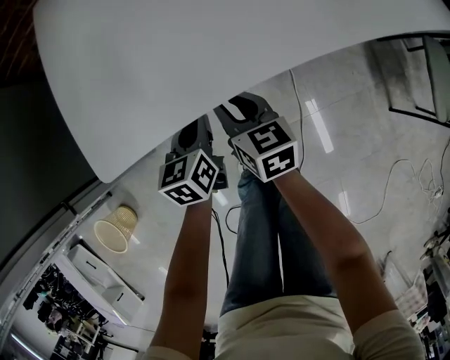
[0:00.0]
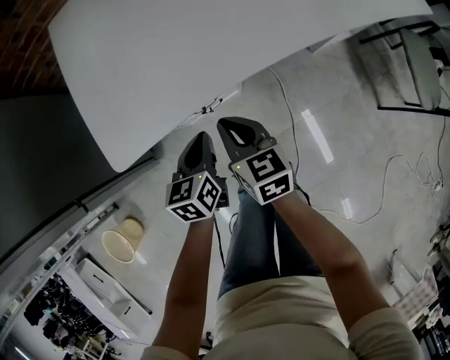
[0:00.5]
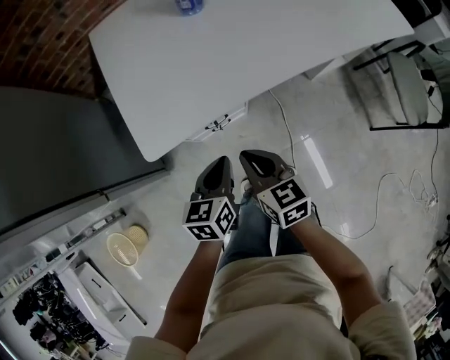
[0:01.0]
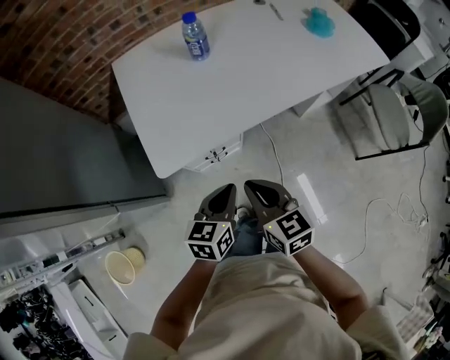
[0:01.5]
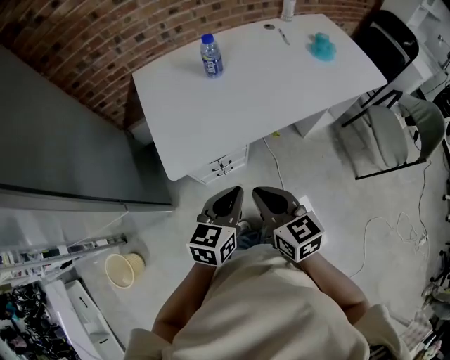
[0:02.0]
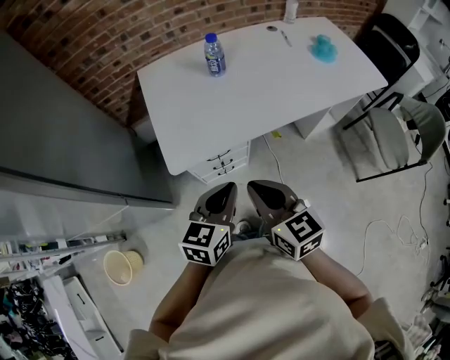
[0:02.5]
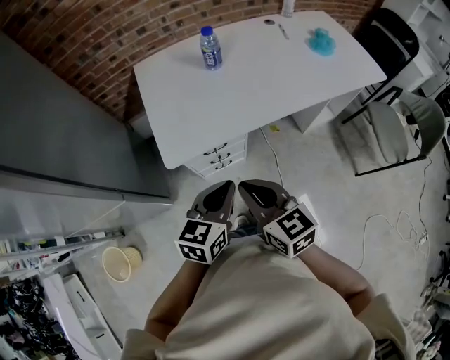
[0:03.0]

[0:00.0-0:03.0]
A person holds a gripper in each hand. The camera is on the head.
0:00.0 to 0:01.5: The grippers both shift upward and backward by about 30 cm. The left gripper rotates about 20 degrees, while the right gripper closes up.
0:01.5 to 0:03.0: The two grippers go about 10 cm upward.

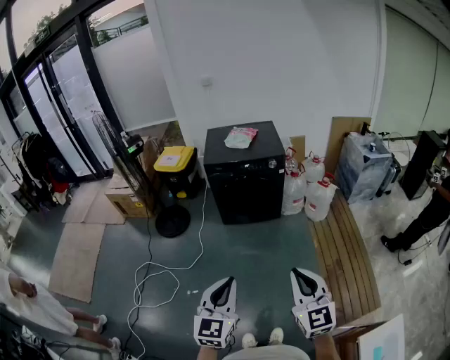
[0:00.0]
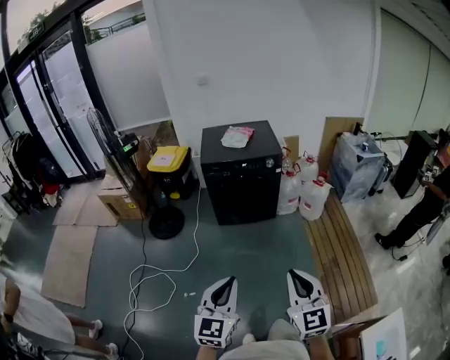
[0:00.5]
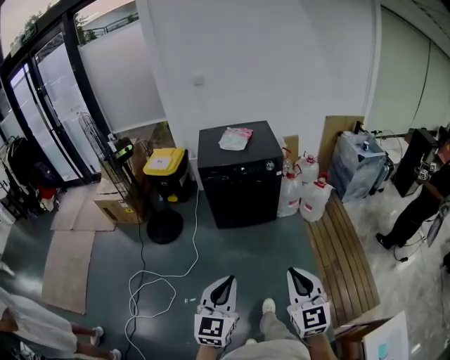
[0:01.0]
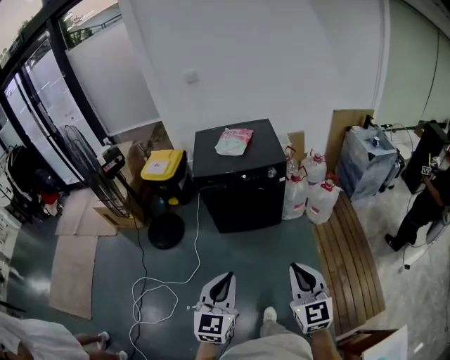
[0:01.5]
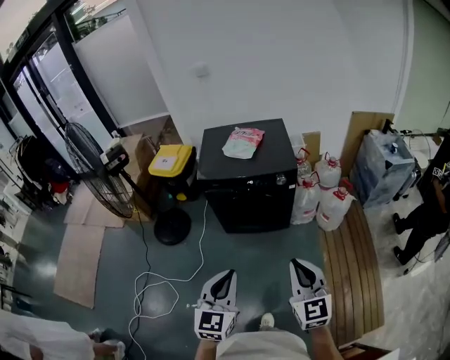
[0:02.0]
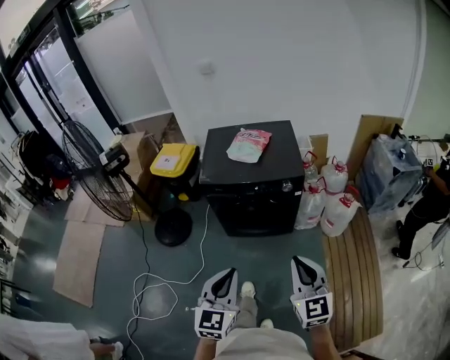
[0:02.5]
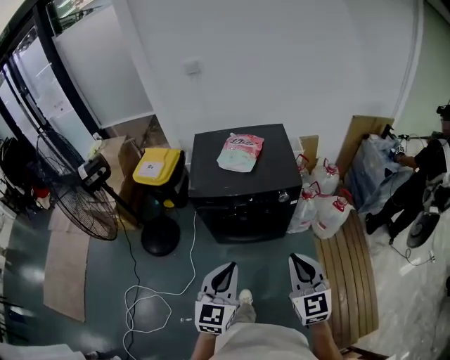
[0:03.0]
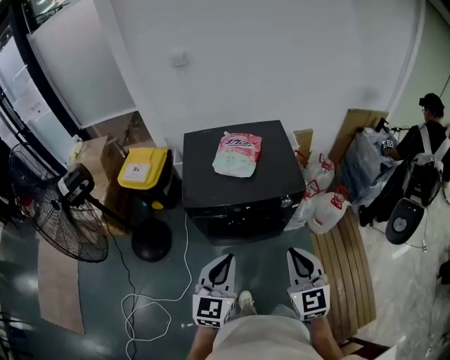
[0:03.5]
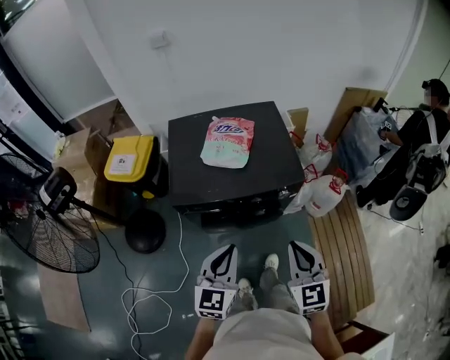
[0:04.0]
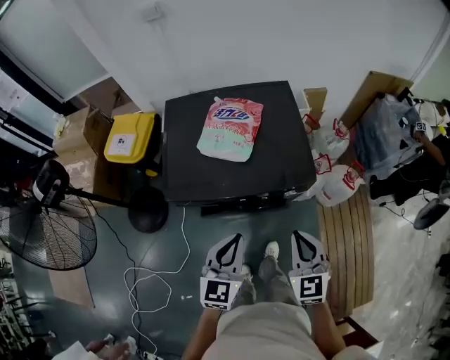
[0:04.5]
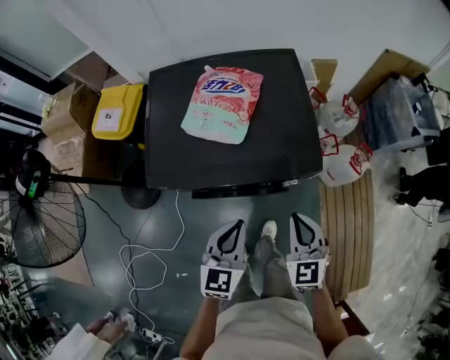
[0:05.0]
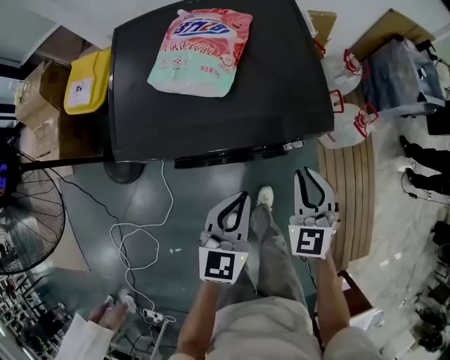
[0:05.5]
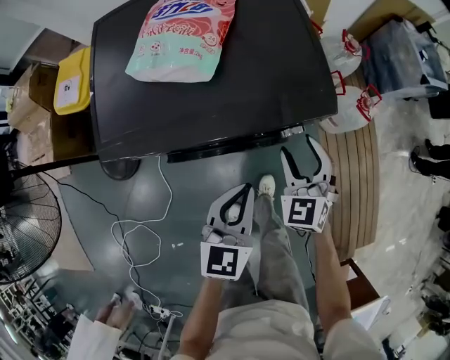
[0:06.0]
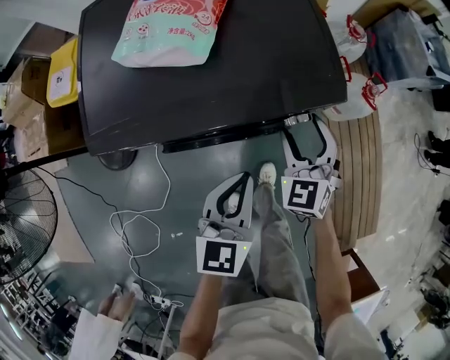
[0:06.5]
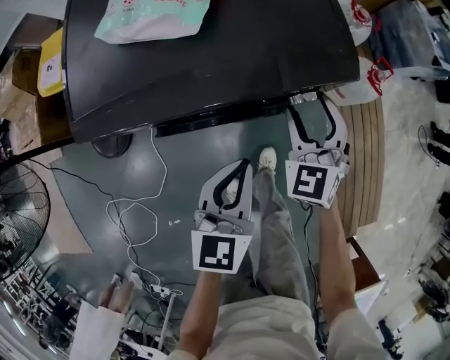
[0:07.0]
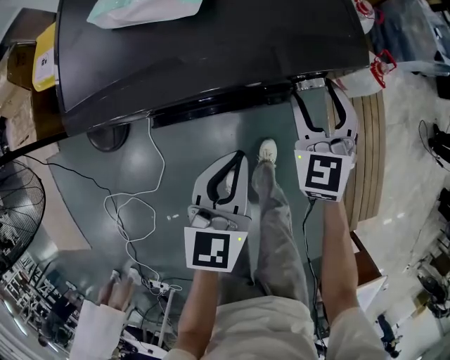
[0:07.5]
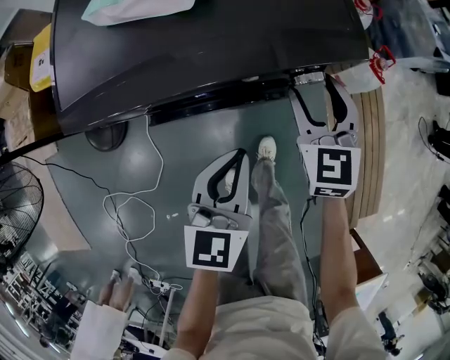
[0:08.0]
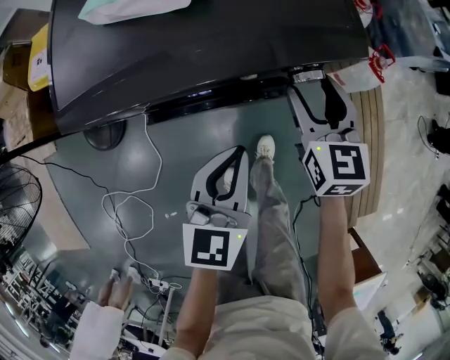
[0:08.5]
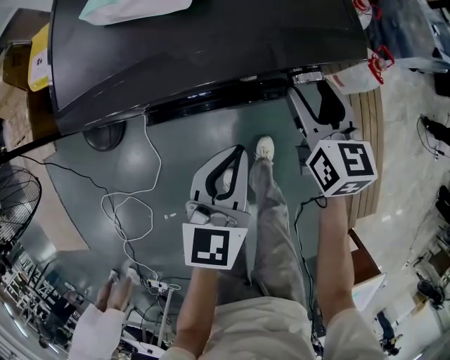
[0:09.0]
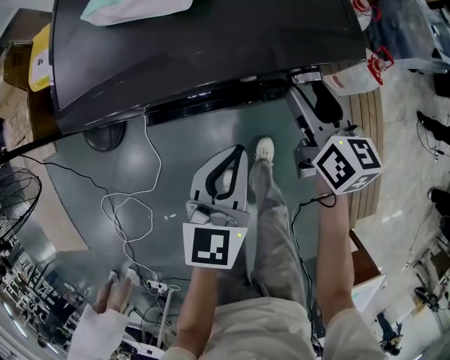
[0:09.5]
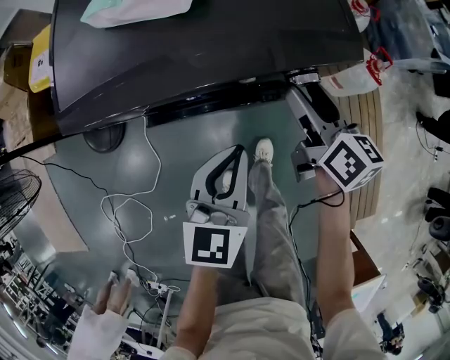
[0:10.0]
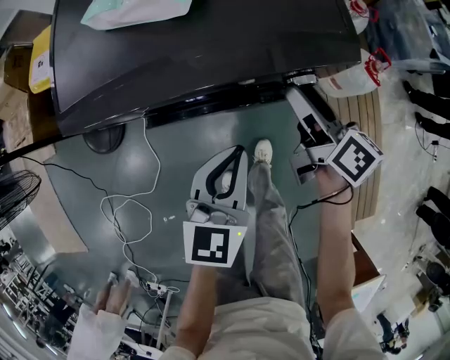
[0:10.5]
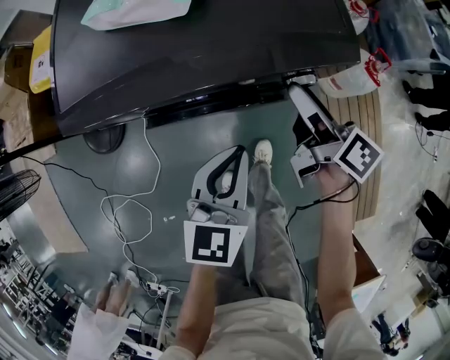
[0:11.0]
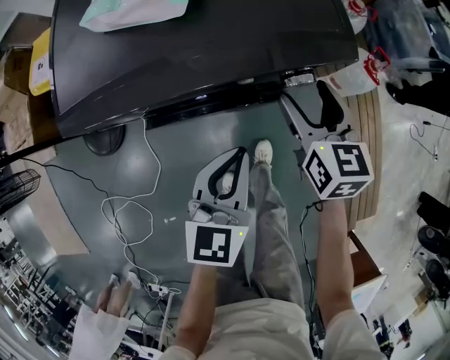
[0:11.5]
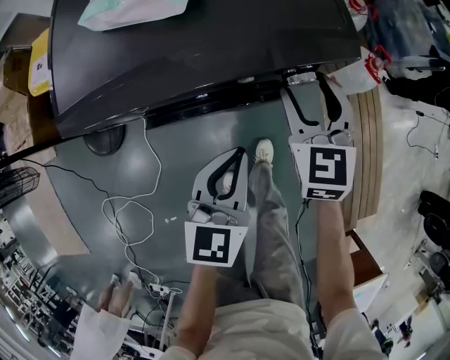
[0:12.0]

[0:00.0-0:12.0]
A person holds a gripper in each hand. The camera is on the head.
0:00.0 to 0:02.0: Both grippers travel together forward, approximately 30 cm.
0:02.0 to 0:04.0: Both grippers travel together forward, some 30 cm.
0:04.0 to 0:06.0: The right gripper moves downward and forward, some 35 cm, and opens. The left gripper is displaced downward, forward and to the right by about 25 cm.
0:06.0 to 0:08.0: The grippers make only small movements.
0:08.0 to 0:10.0: The right gripper rotates around the line of its fingers by roughly 50 degrees, clockwise from behind.
0:10.0 to 0:12.0: The right gripper rotates around the line of its fingers by approximately 50 degrees, counterclockwise from behind.

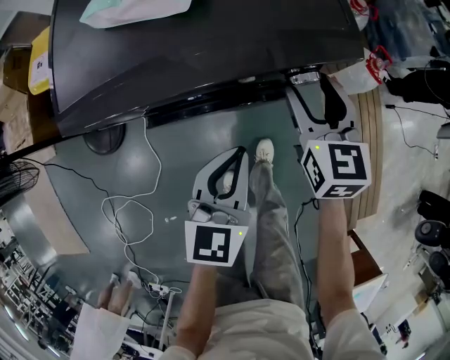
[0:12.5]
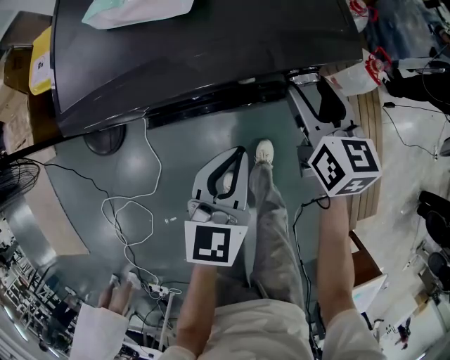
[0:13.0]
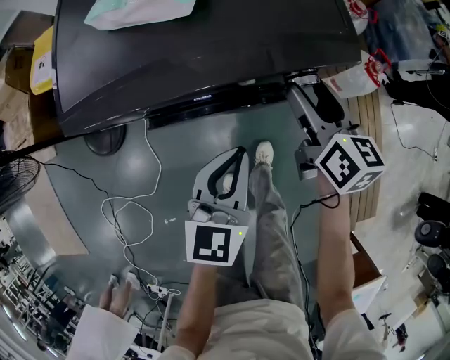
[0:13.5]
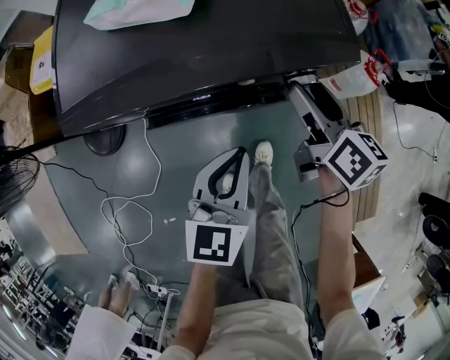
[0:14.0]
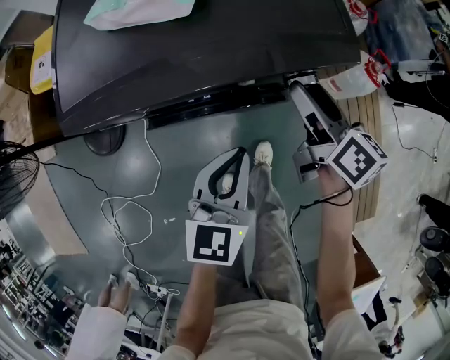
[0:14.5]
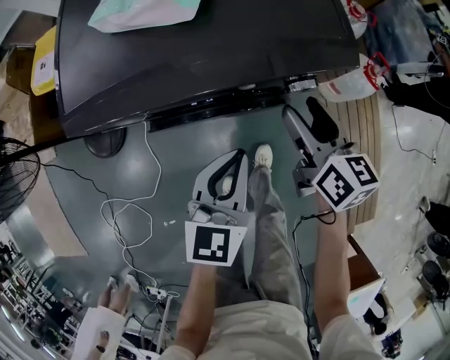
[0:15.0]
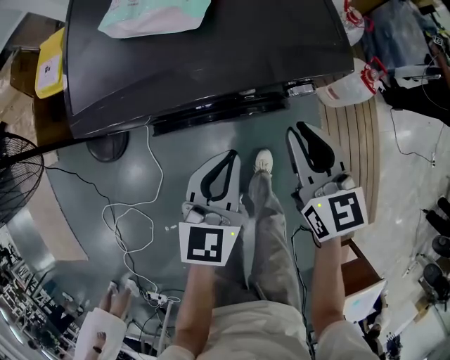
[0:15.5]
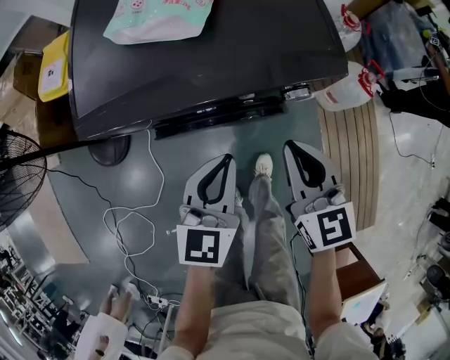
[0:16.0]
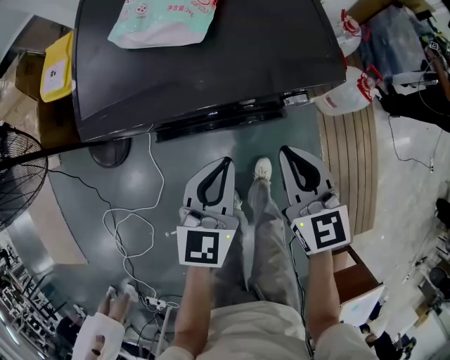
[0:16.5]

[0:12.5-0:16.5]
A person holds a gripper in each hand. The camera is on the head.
0:12.5 to 0:14.5: The right gripper turns by roughly 40 degrees.
0:14.5 to 0:16.5: The right gripper shifts approximately 10 cm backward, upward and to the left, rolls counterclockwise, seen from behind, by about 40 degrees, and closes.

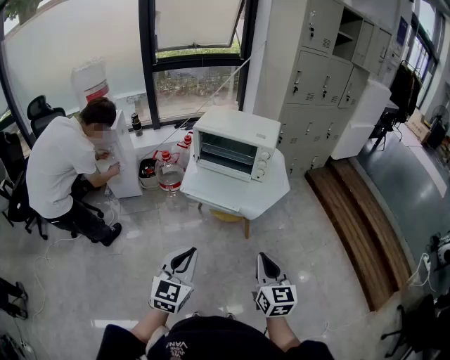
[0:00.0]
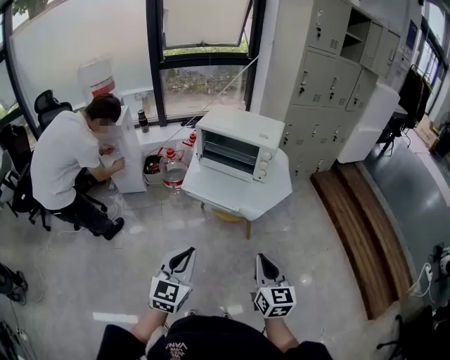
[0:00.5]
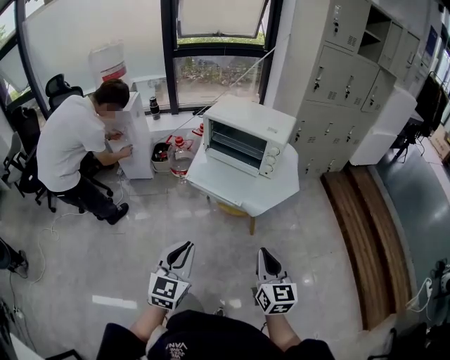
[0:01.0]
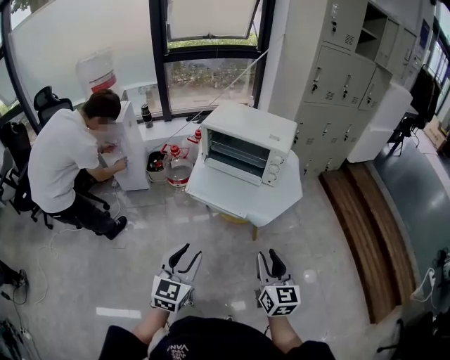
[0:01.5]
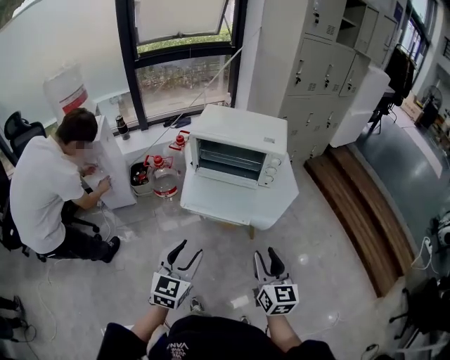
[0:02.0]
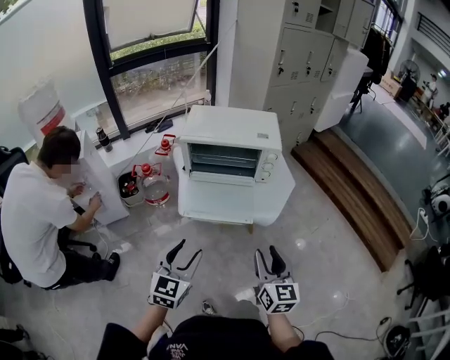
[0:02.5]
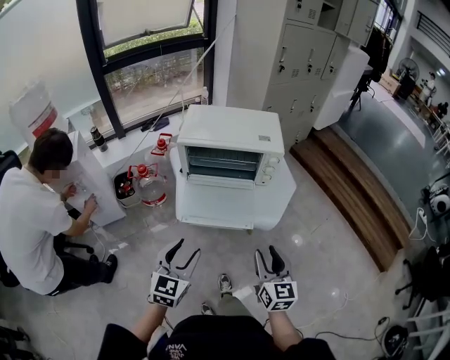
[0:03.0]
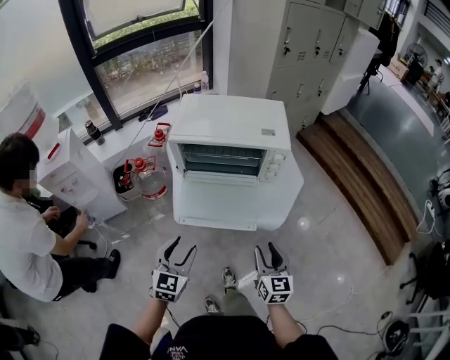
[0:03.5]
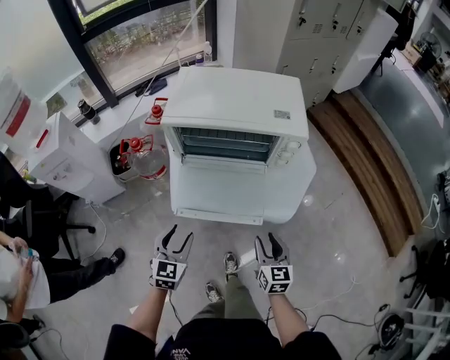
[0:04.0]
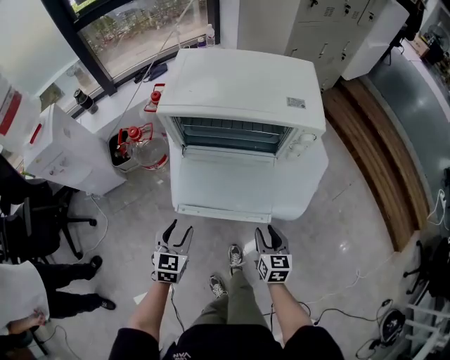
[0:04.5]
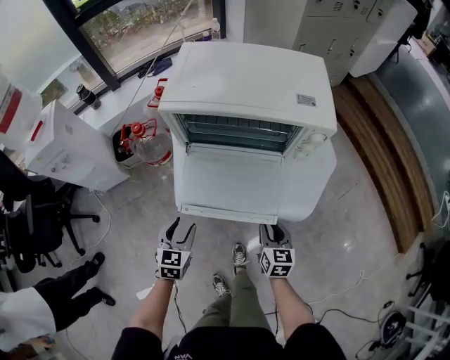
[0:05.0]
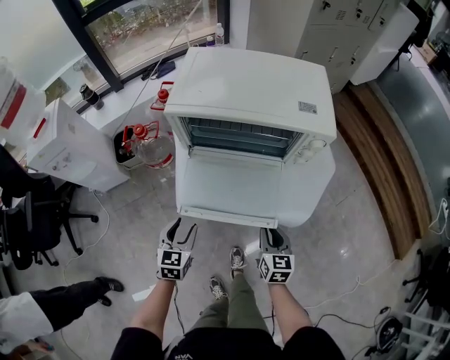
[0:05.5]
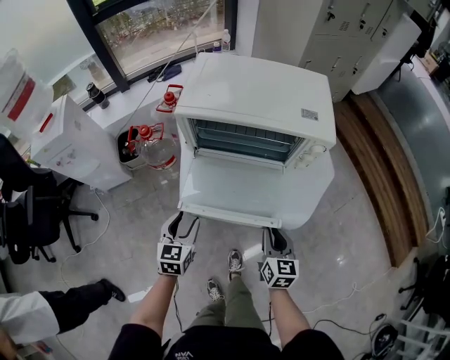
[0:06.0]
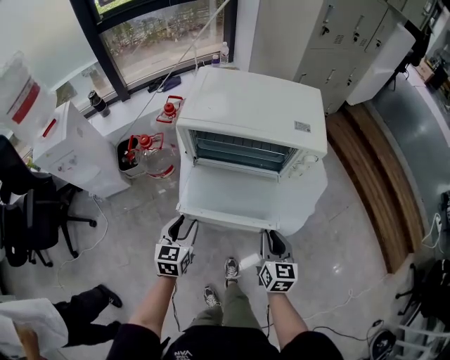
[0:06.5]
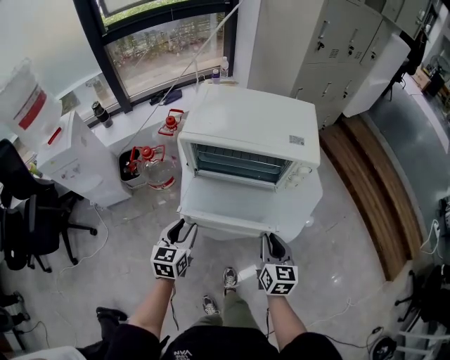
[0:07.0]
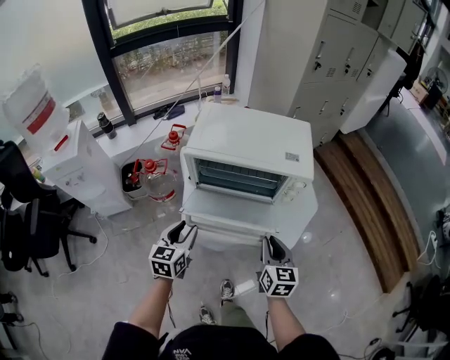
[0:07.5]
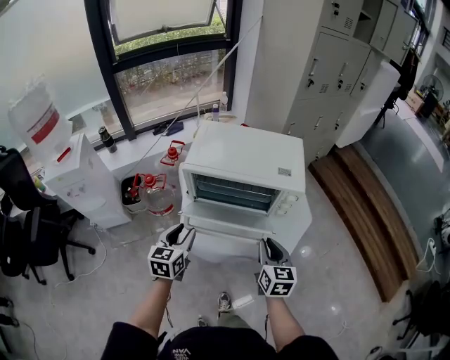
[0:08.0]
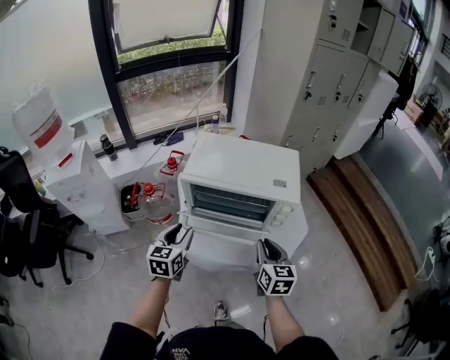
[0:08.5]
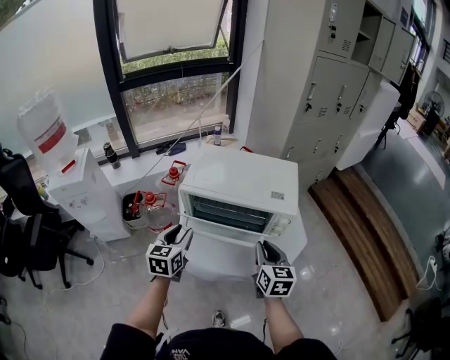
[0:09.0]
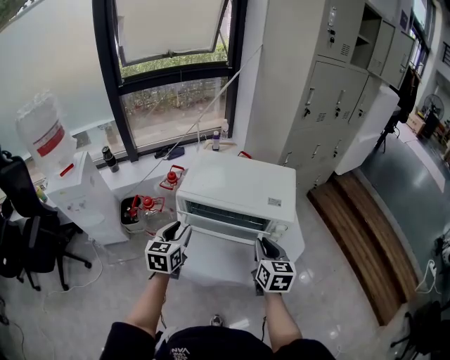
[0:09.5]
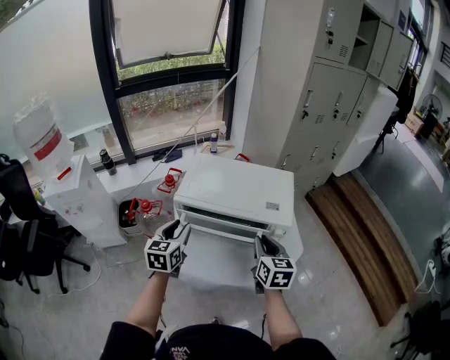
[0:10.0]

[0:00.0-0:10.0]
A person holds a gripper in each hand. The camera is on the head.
0:00.0 to 0:02.0: Both grippers move forward and to the left, roughly 15 cm. The left gripper opens. Meanwhile the right gripper opens up.
0:02.0 to 0:04.0: The left gripper moves downward, forward and to the left, about 25 cm; the right gripper is displaced downward and forward by roughly 25 cm.
0:04.0 to 0:06.0: The left gripper changes place by some 5 cm. Meanwhile the right gripper goes downward and returns, some 10 cm each way, and closes.
0:06.0 to 0:08.0: Both grippers move upward and forward, some 15 cm.
0:08.0 to 0:10.0: Both grippers travel together forward and upward, some 10 cm.
